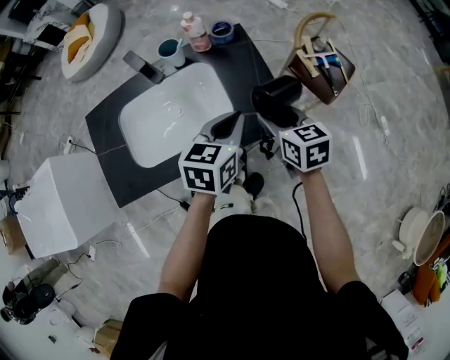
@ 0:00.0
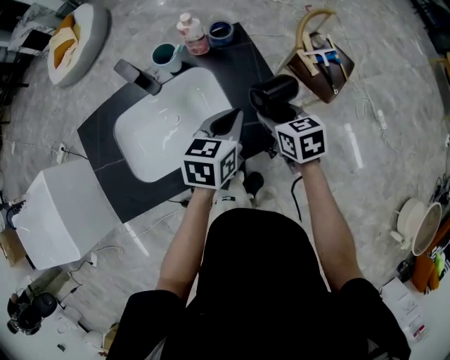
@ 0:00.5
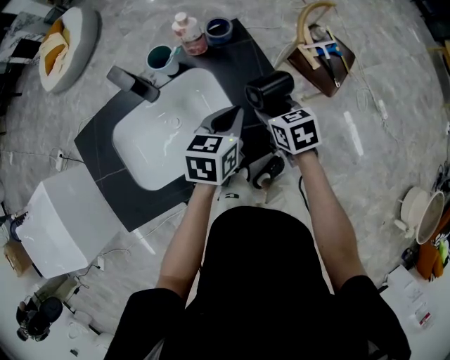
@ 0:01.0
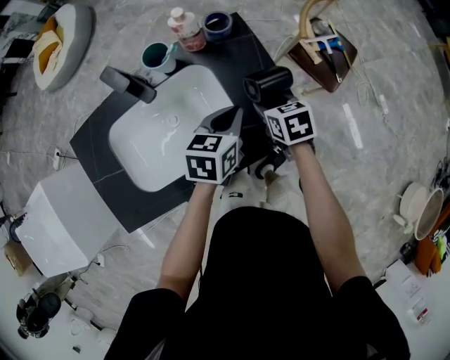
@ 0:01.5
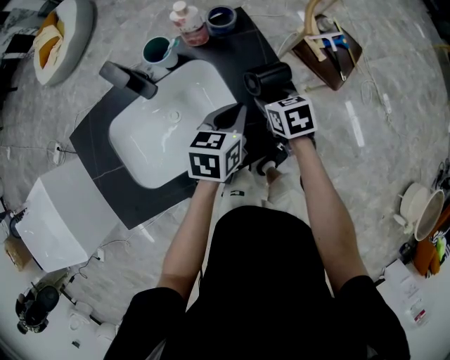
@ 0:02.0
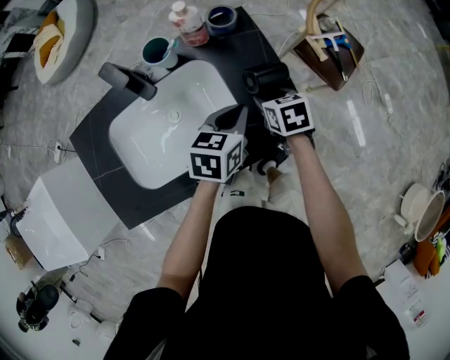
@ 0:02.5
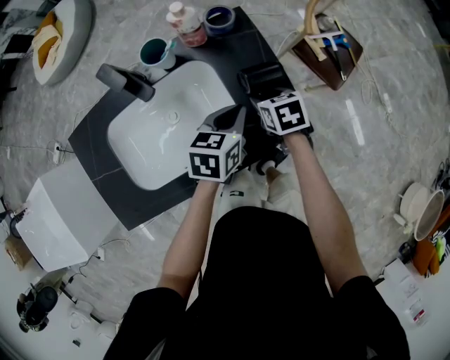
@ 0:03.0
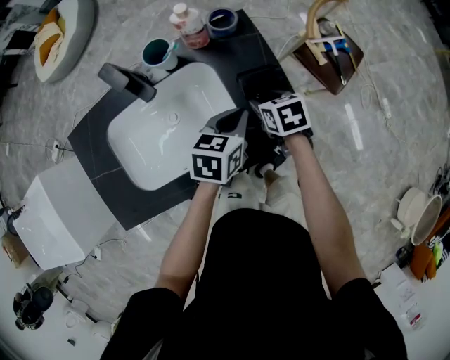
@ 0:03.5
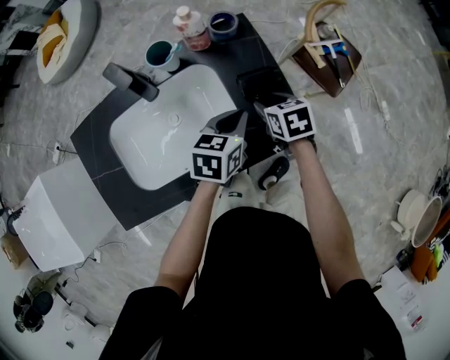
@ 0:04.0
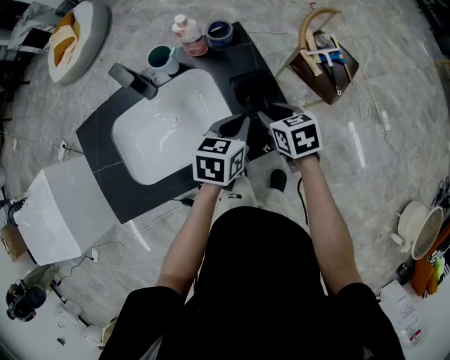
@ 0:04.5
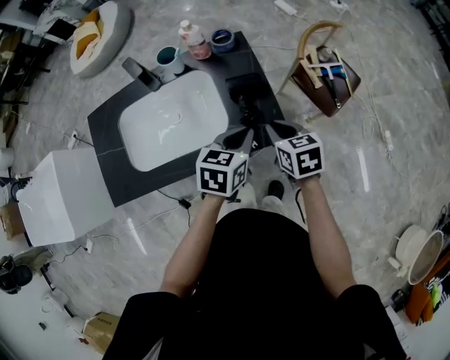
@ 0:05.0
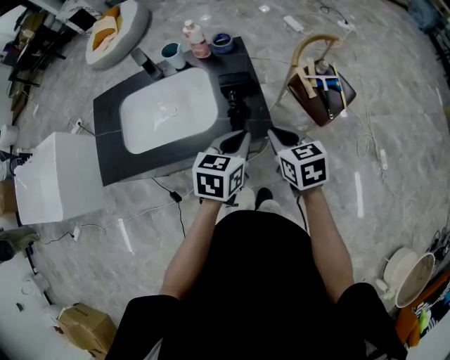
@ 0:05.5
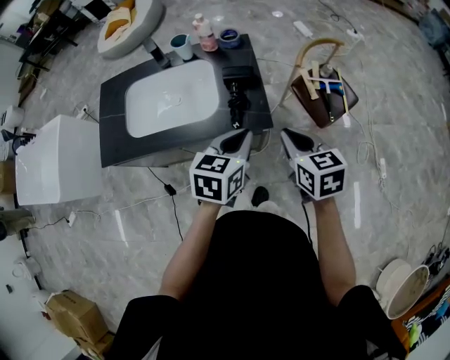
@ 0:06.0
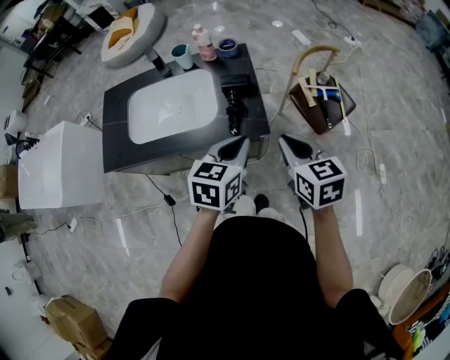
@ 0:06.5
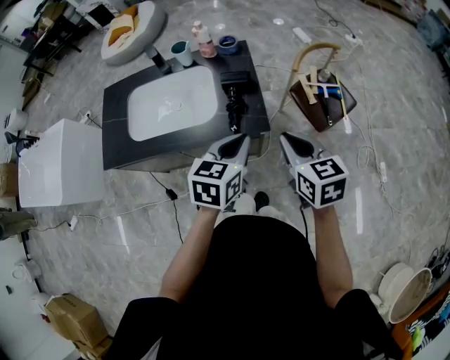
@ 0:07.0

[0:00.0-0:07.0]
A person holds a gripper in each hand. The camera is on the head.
0:00.0 to 0:02.0: The two grippers go approximately 15 cm downward and forward. The right gripper swivels roughly 20 degrees.
0:02.0 to 0:03.5: The grippers stay close to where they were, moving slightly.
0:03.5 to 0:05.0: The right gripper shifts some 15 cm backward, upward and to the right, and closes its fingers. Meanwhile the left gripper goes roughly 15 cm backward, to the right and upward.
0:05.0 to 0:07.0: Both grippers travel together backward, upward and to the right, about 20 cm.

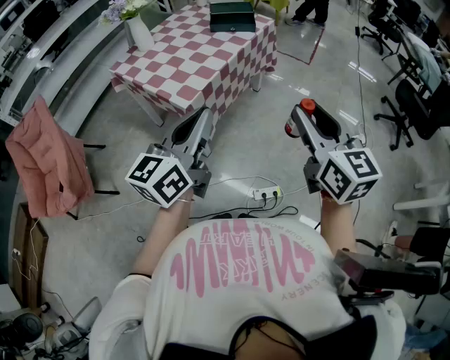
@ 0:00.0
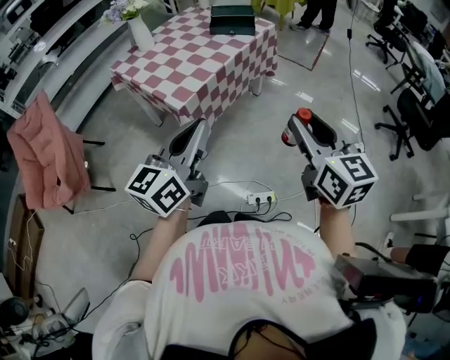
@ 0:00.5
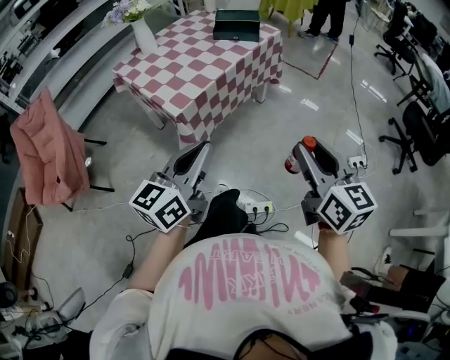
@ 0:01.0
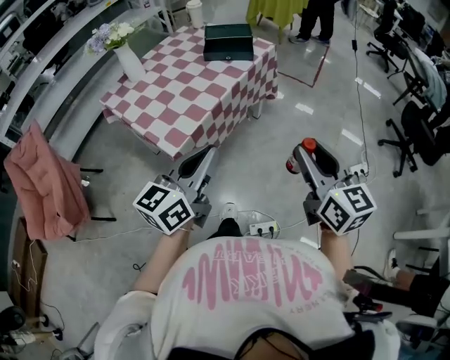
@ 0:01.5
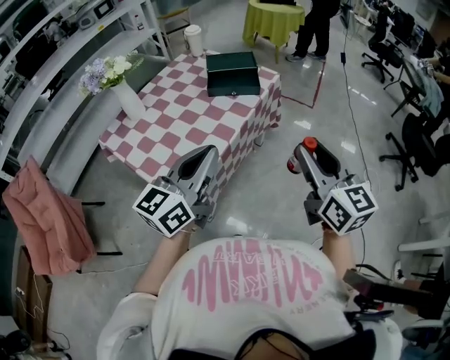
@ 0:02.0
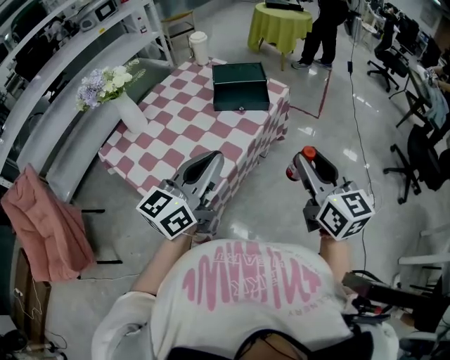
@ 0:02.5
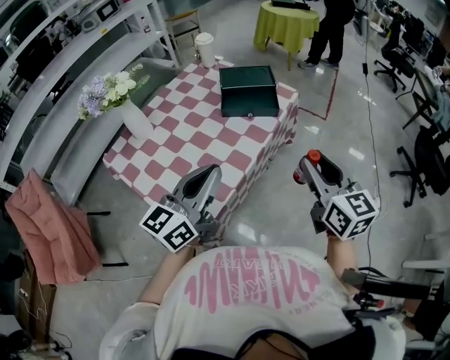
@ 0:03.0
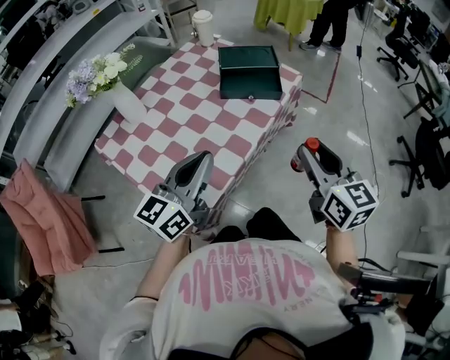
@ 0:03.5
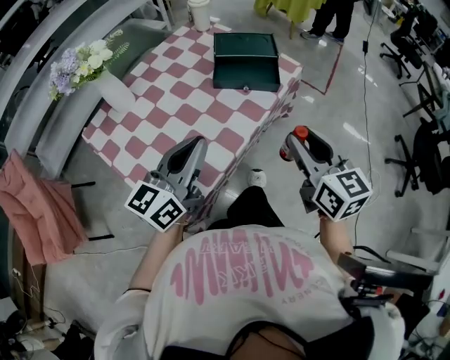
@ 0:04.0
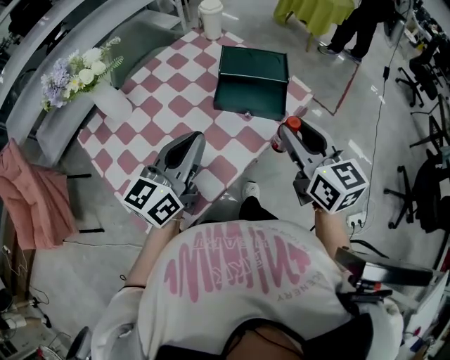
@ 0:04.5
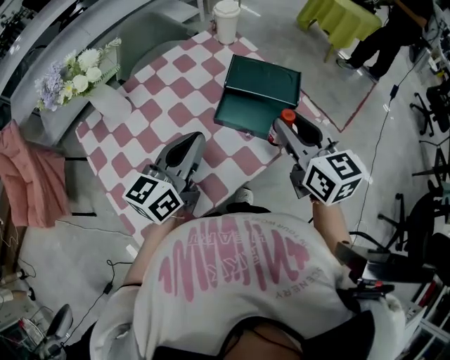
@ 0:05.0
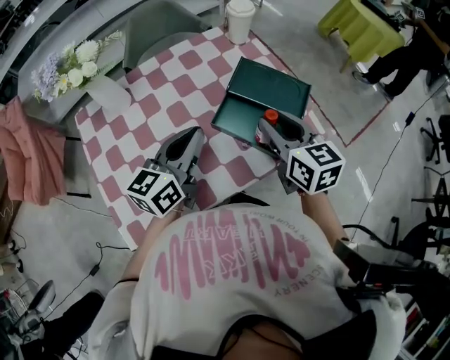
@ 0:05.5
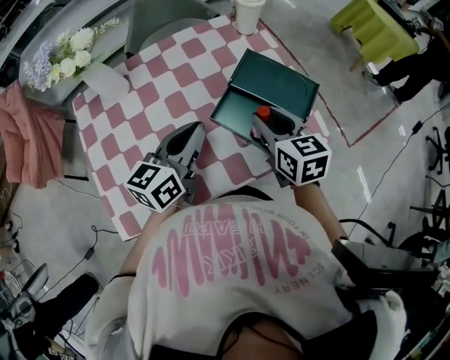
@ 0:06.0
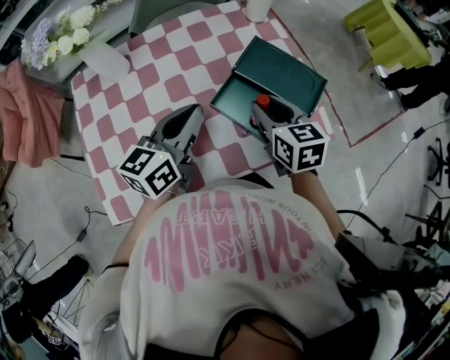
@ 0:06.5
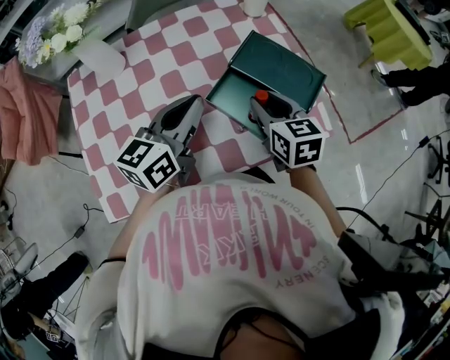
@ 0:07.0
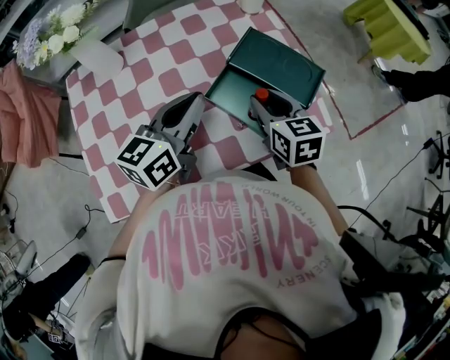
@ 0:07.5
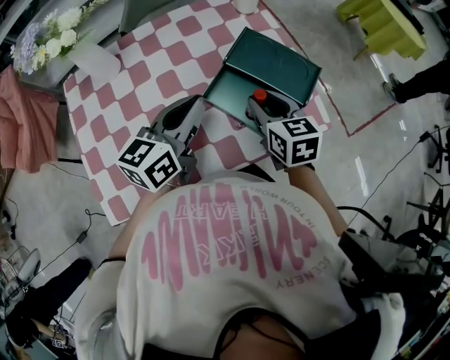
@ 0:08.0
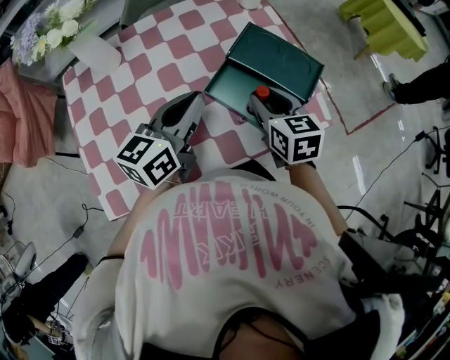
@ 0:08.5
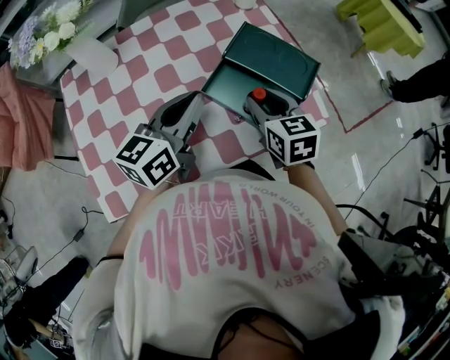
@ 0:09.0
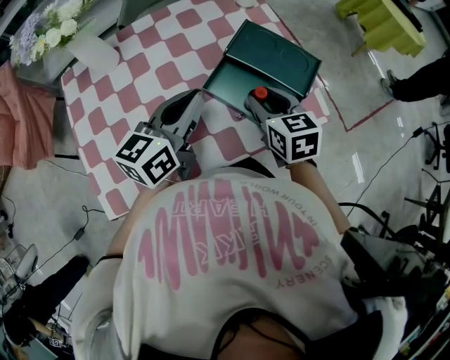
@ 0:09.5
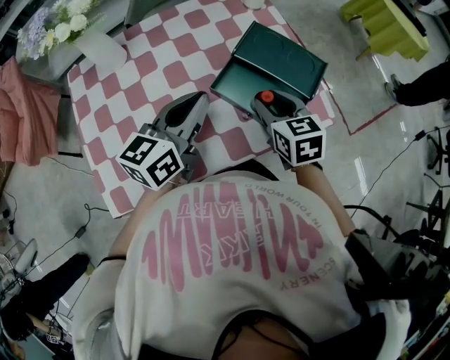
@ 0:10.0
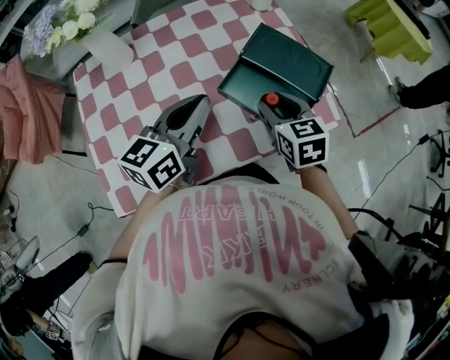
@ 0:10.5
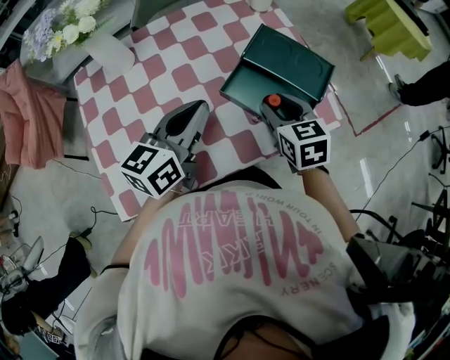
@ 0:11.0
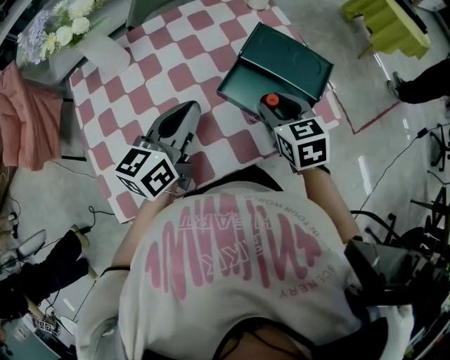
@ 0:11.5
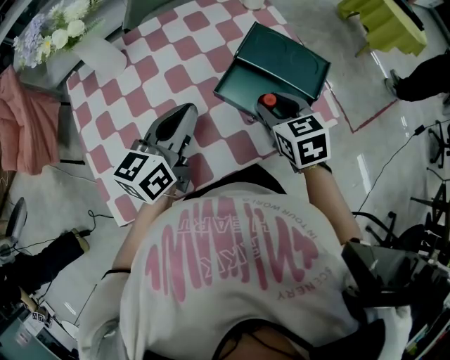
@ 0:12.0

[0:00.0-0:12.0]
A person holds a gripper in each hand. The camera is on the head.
0:00.0 to 0:02.0: Both grippers travel together forward, some 25 cm.
0:02.0 to 0:04.0: The left gripper is displaced forward, downward and to the left by roughly 20 cm; the right gripper shifts approximately 20 cm forward and downward.
0:04.0 to 0:06.0: The right gripper moves roughly 35 cm, and changes its angle by roughly 30 degrees; the left gripper shifts by some 25 cm, and turns by approximately 30 degrees.
0:06.0 to 0:12.0: The grippers move only a little.

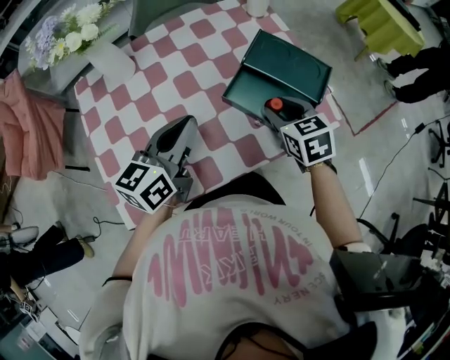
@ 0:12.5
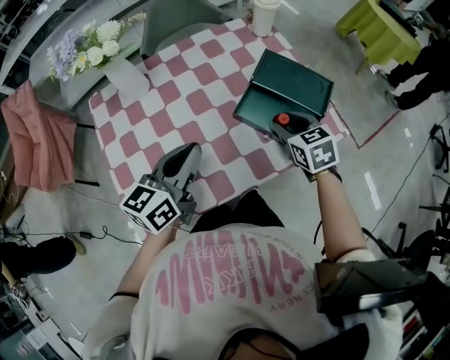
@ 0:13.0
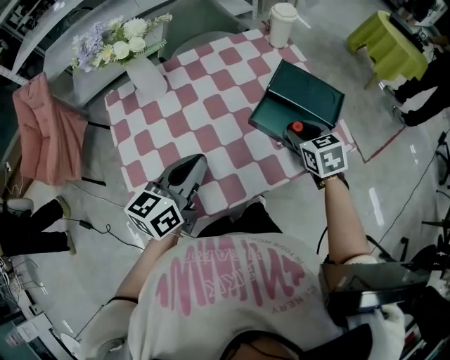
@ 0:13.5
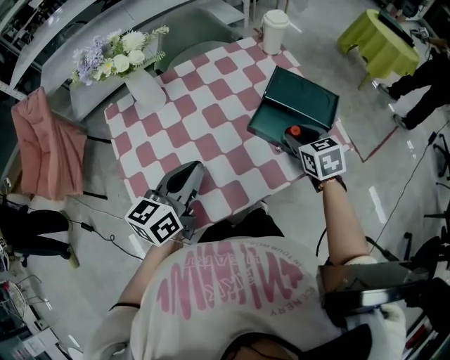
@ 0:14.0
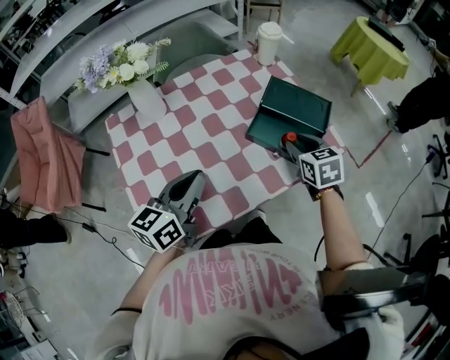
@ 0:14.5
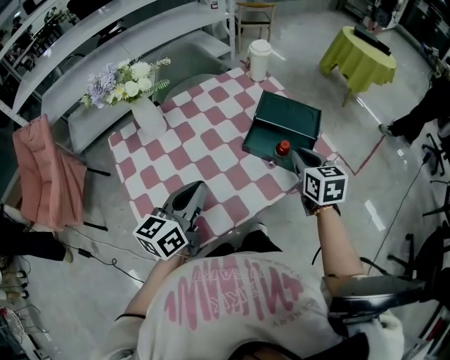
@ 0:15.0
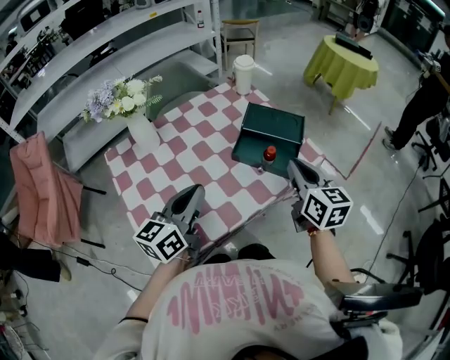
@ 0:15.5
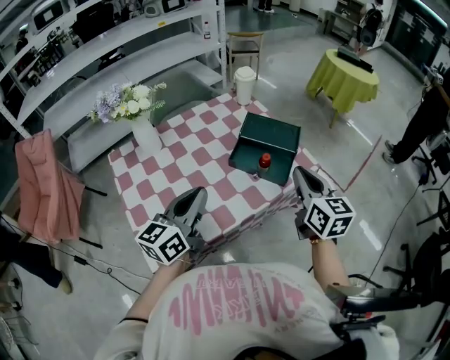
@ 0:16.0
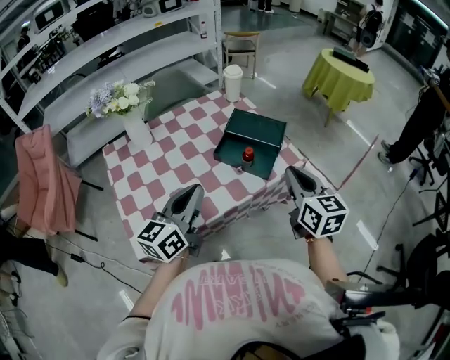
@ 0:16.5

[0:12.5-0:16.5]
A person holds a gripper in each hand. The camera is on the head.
0:12.5 to 0:14.5: The left gripper shifts roughly 10 cm backward and to the left.
0:14.5 to 0:16.5: The left gripper is displaced to the right, upward and backward by approximately 15 cm, while the right gripper is displaced upward, backward and to the right by some 25 cm, swivels approximately 30 degrees, and closes its fingers.

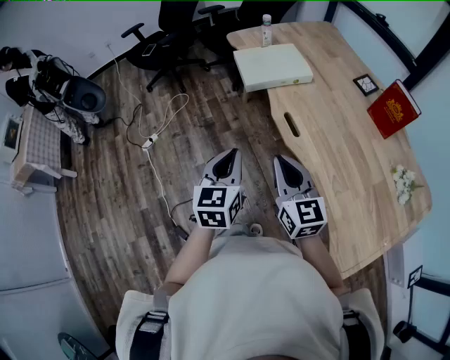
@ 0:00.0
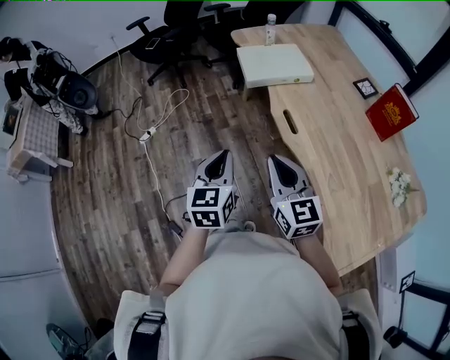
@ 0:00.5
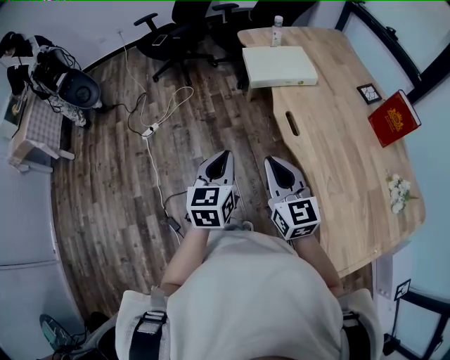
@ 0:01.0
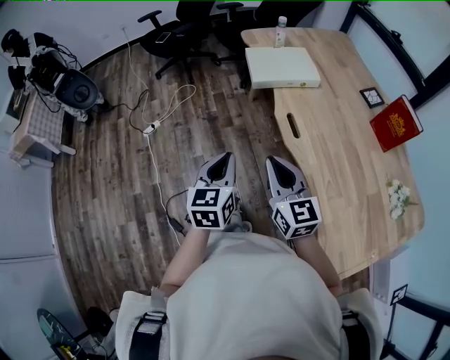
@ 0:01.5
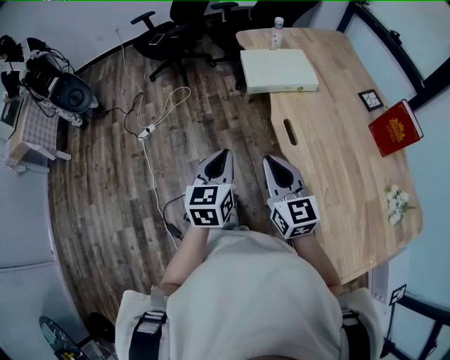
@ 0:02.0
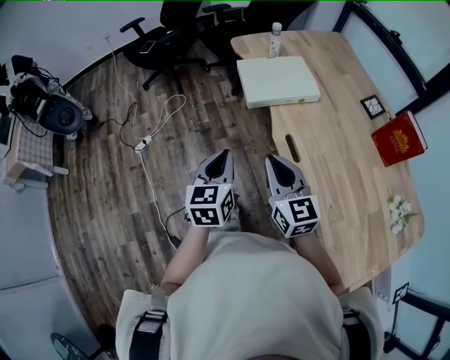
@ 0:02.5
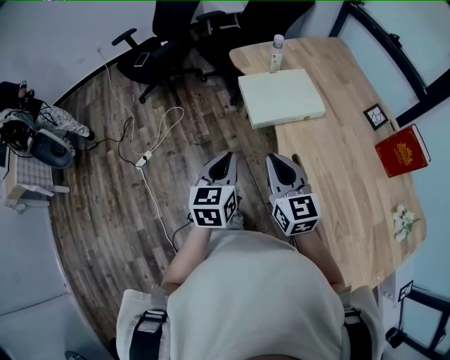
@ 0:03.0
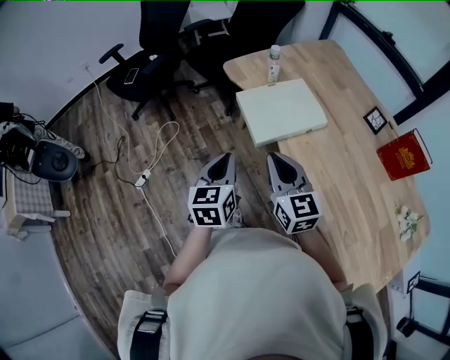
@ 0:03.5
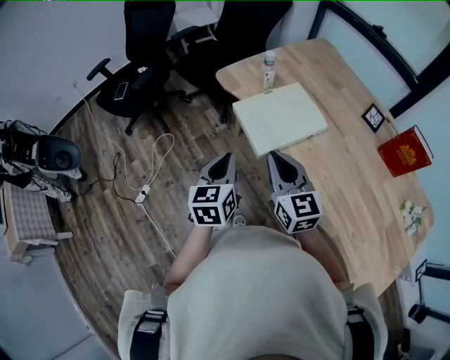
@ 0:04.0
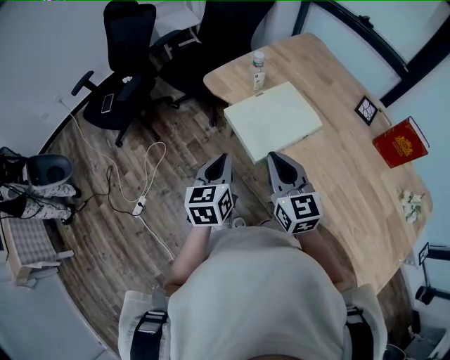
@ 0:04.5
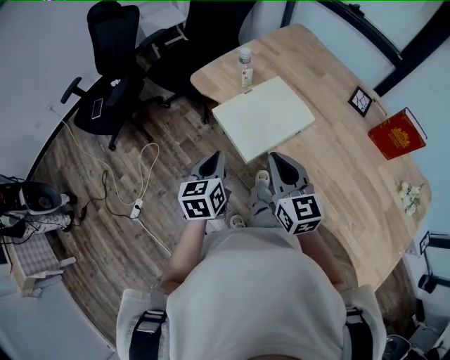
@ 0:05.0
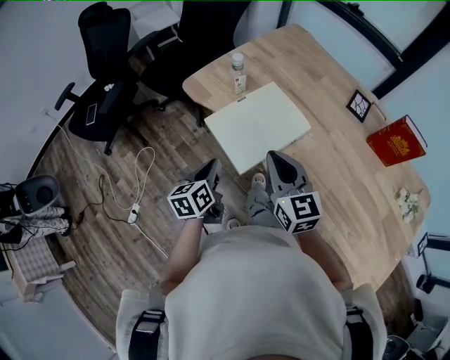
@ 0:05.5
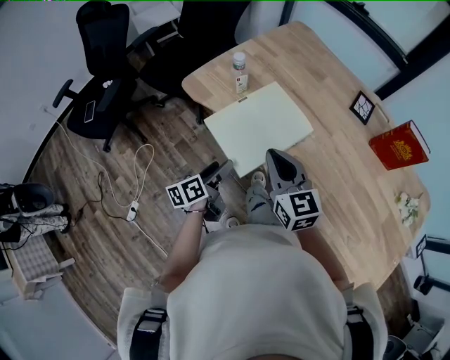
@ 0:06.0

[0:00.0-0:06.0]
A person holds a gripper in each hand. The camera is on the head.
0:00.0 to 0:02.0: There are only small adjustments of the grippers.
0:02.0 to 0:04.0: The grippers both shift forward by roughly 30 cm.
0:04.0 to 0:06.0: The right gripper is displaced forward and to the right by approximately 10 cm, while the left gripper shifts approximately 20 cm downward and forward, turns by approximately 40 degrees, and opens up.
